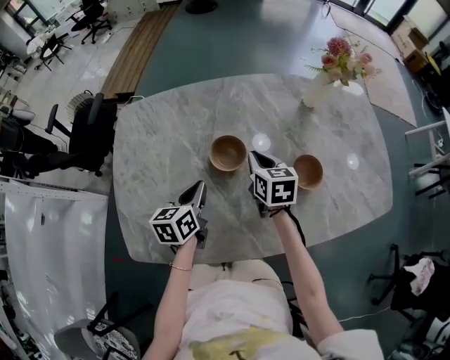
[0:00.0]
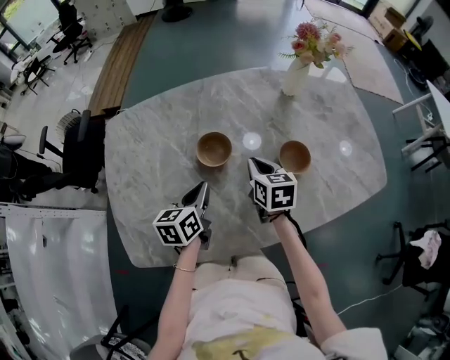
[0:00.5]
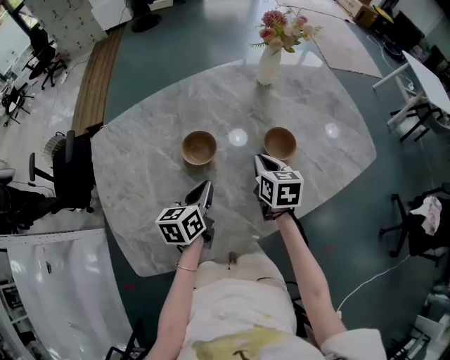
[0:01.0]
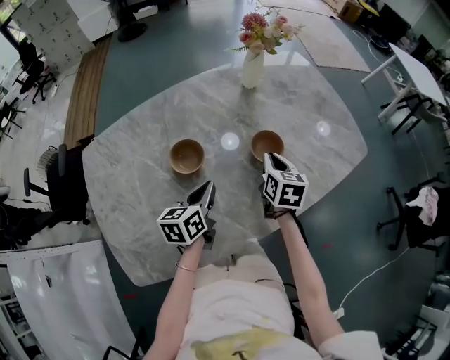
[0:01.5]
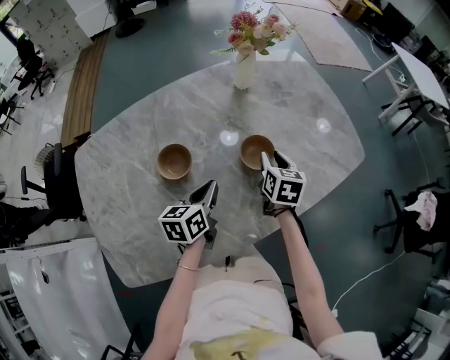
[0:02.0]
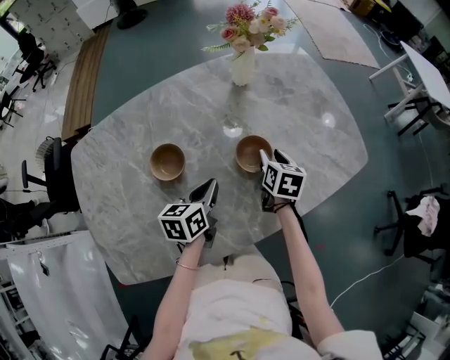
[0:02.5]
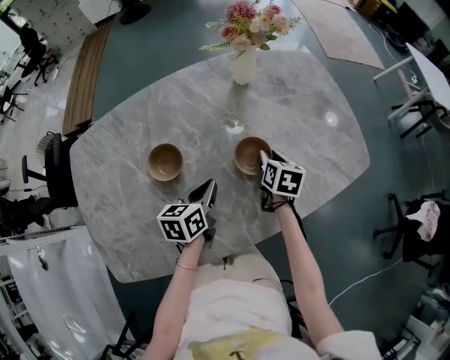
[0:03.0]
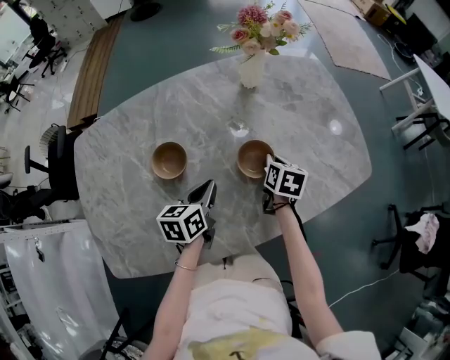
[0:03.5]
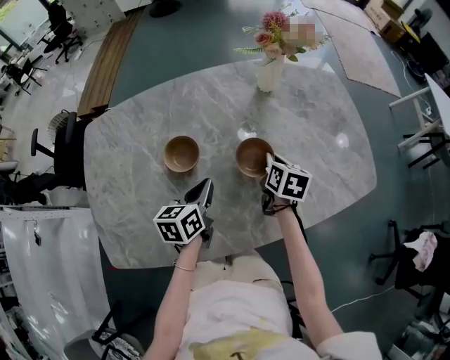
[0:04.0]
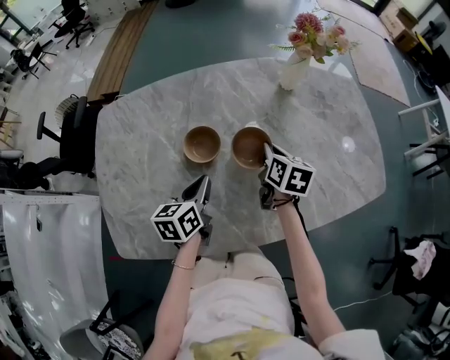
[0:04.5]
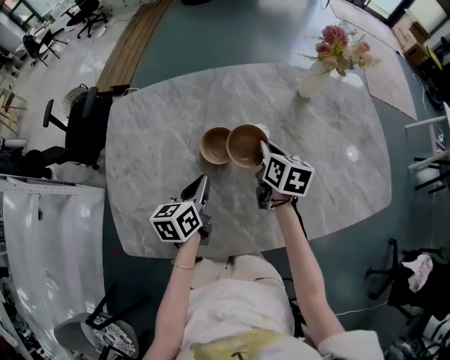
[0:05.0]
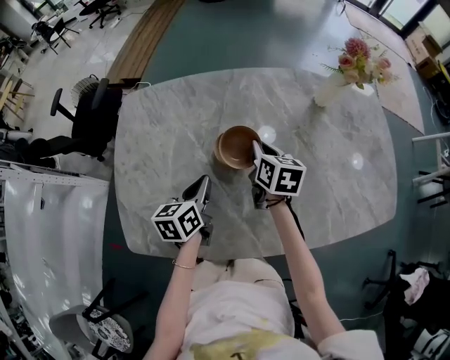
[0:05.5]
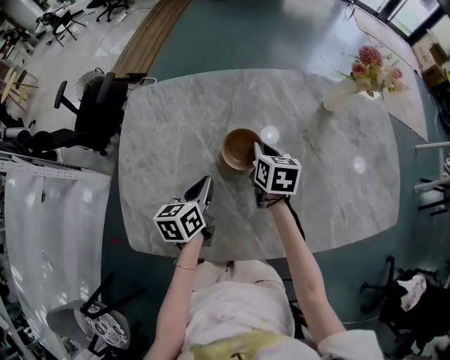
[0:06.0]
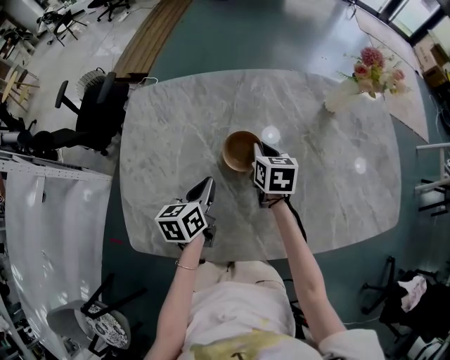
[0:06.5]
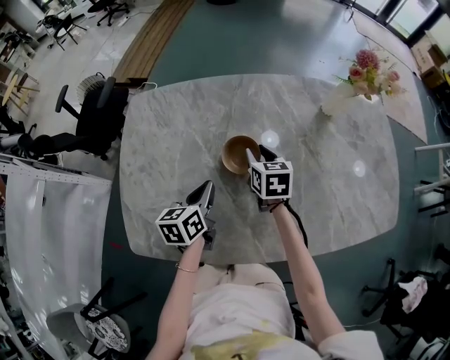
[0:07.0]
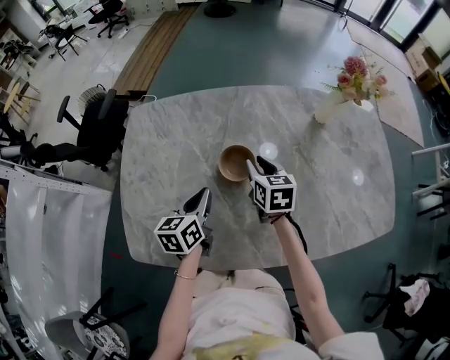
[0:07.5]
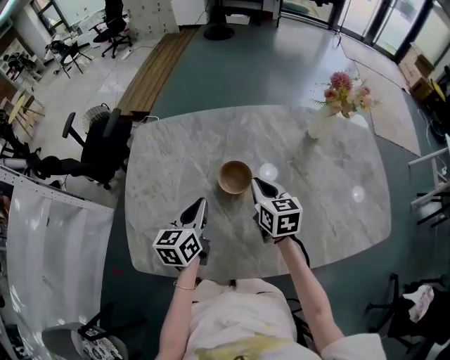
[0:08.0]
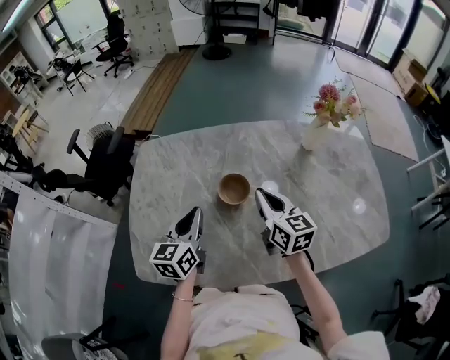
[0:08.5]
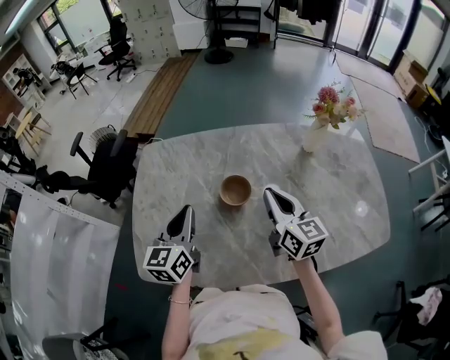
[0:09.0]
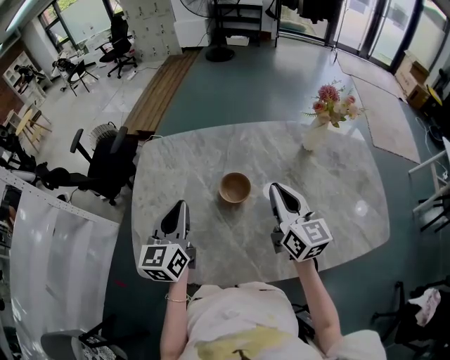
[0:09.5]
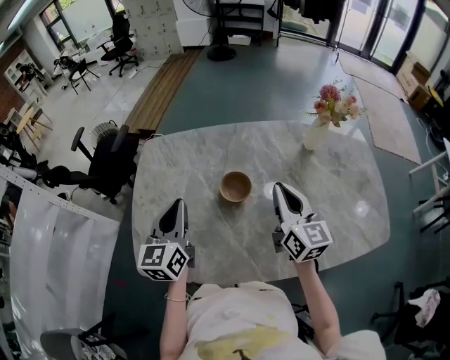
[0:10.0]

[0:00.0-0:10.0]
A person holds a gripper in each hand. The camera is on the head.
0:00.0 to 0:02.0: The right gripper moves approximately 20 cm, changes its angle by roughly 30 degrees, and opens its fingers. The left gripper shifts by roughly 15 cm, and changes its angle by roughly 20 degrees.
0:02.0 to 0:04.0: The right gripper shifts by about 5 cm, and closes up.
0:04.0 to 0:06.0: Both grippers move to the left, some 20 cm. The right gripper changes its angle by approximately 20 degrees.
0:06.0 to 0:08.0: The left gripper heads upward, covering roughly 5 cm. Meanwhile the right gripper moves upward and backward, approximately 10 cm, and opens, then closes once more.
0:08.0 to 0:10.0: The left gripper travels upward by about 10 cm, and rotates some 20 degrees. The right gripper travels upward and backward by some 15 cm, and turns by about 30 degrees.

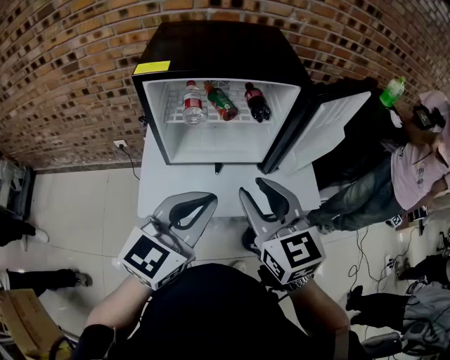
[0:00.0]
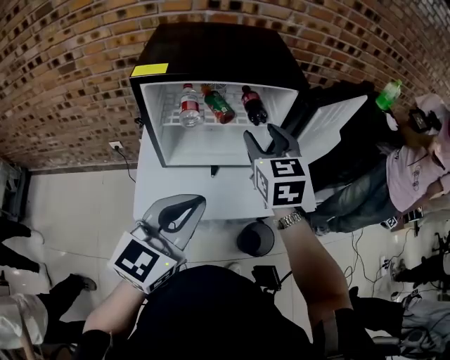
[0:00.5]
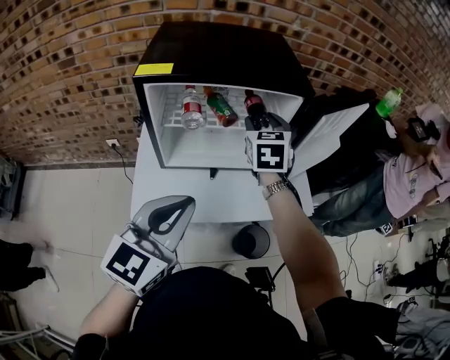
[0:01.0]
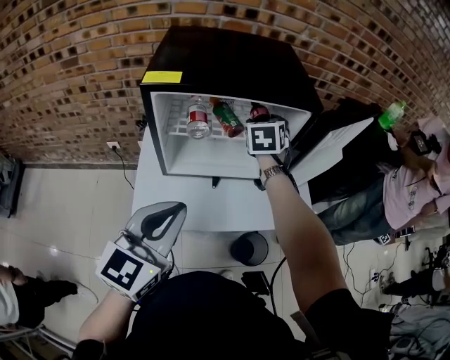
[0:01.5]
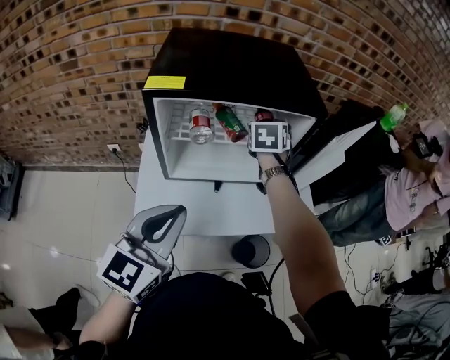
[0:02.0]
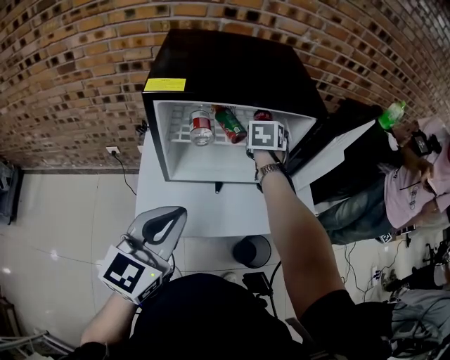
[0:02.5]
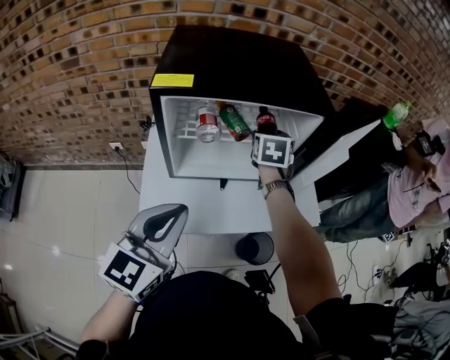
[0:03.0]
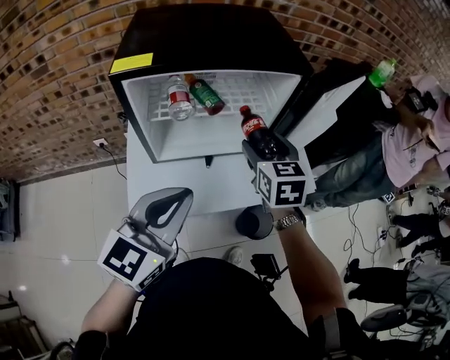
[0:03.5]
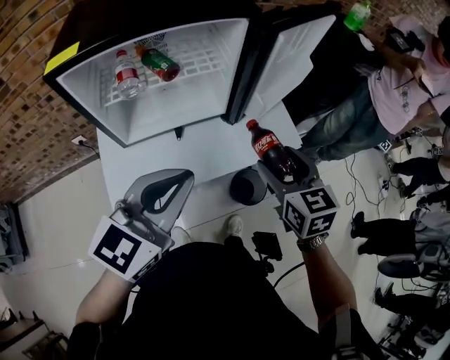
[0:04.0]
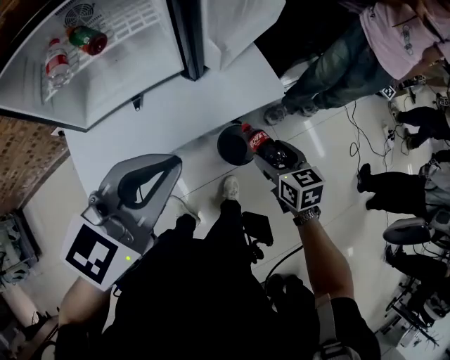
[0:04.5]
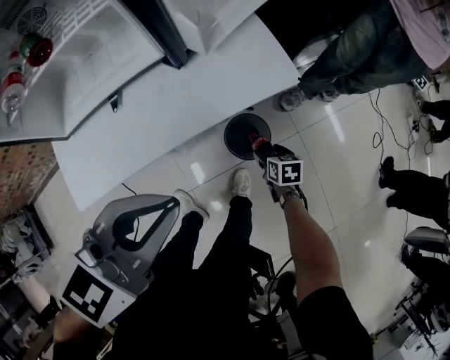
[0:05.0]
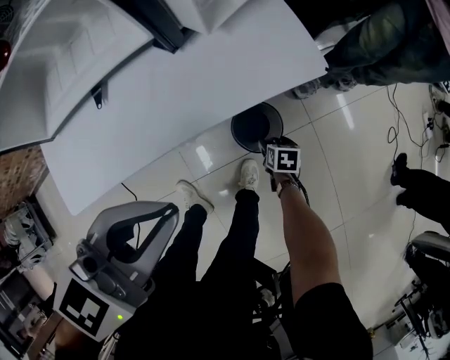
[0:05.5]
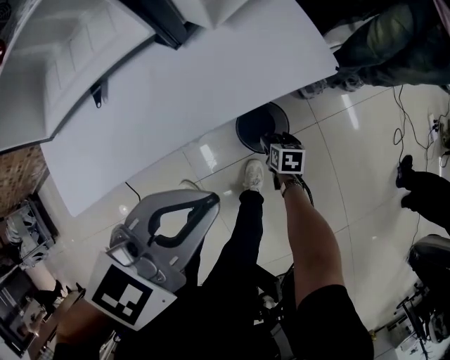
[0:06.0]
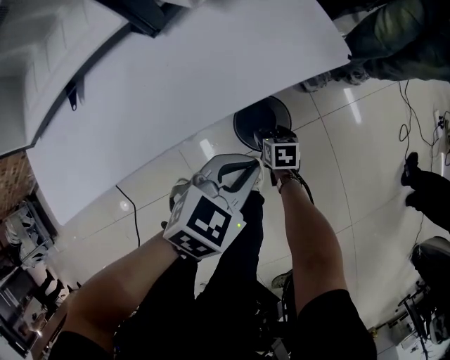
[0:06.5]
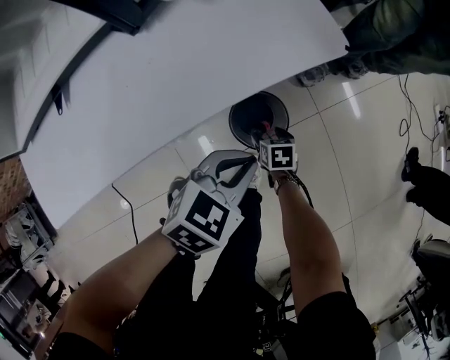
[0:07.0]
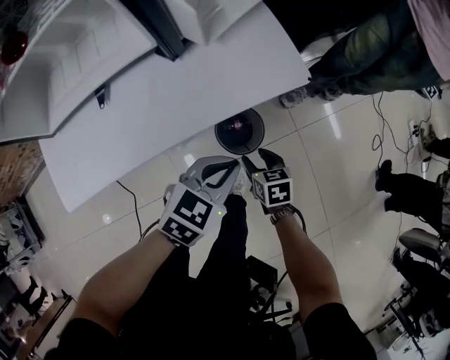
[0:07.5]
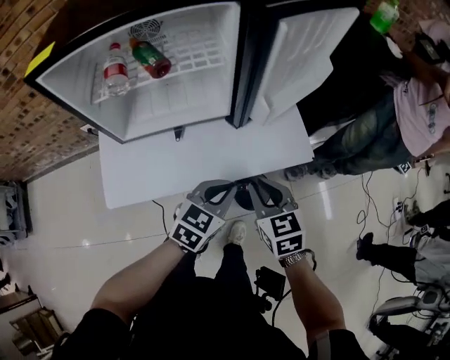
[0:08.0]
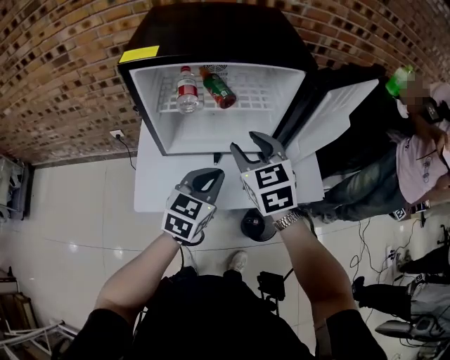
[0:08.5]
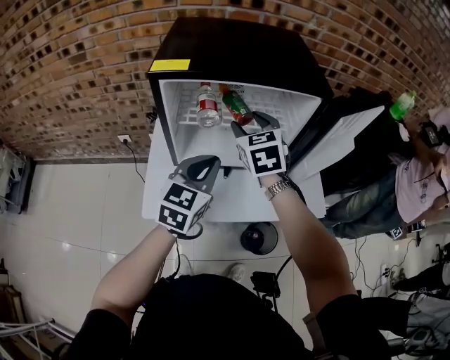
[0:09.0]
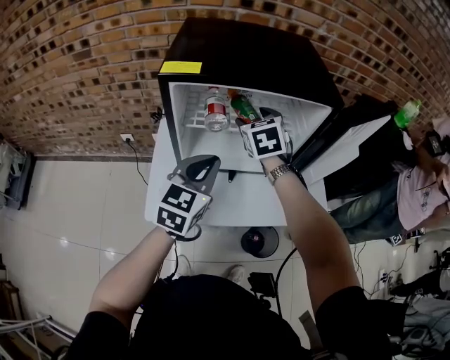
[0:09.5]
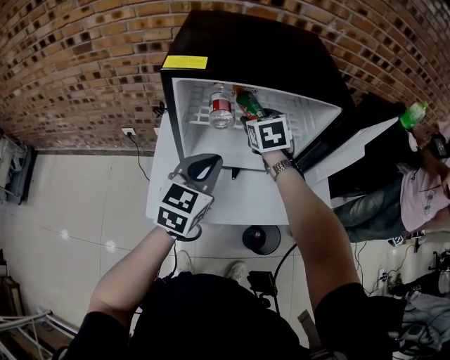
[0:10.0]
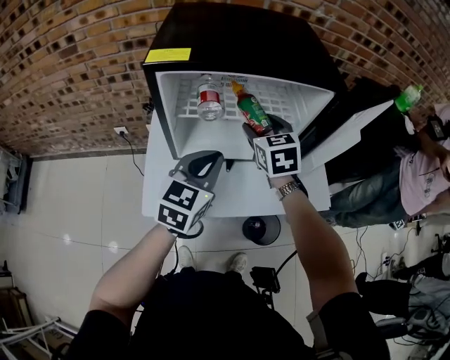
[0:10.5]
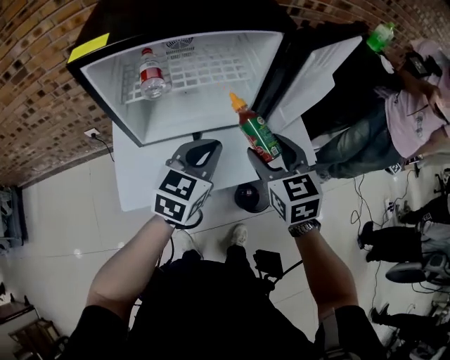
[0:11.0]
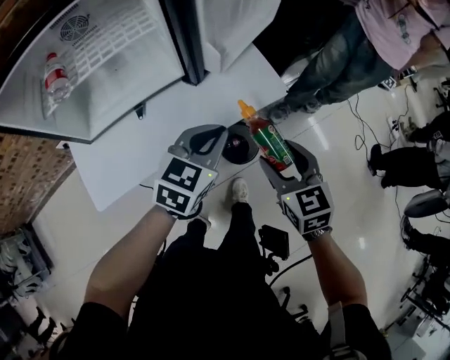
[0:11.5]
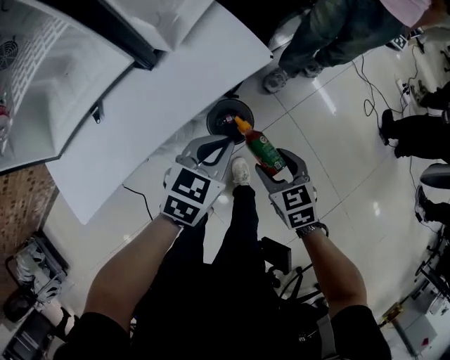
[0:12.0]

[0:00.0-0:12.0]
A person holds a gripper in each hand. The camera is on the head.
0:00.0 to 0:02.0: The left gripper is displaced to the left by approximately 10 cm, while the right gripper travels forward by roughly 30 cm, changes its angle by roughly 40 degrees, and opens its fingers.
0:02.0 to 0:04.0: The left gripper shifts roughly 10 cm to the right, and swivels some 20 degrees, while the right gripper shifts approximately 30 cm backward and to the right, and turns by some 20 degrees.
0:04.0 to 0:06.0: The right gripper shifts about 60 cm downward, and points its fingers some 30 degrees further downward. The left gripper shifts roughly 30 cm downward and to the right, and turns by some 30 degrees.
0:06.0 to 0:08.0: The right gripper goes some 40 cm upward, changes its angle by about 50 degrees, and closes. The left gripper heads to the left, covering about 5 cm, and travels downward and back again, some 20 cm each way.
0:08.0 to 0:10.0: The right gripper heads forward, to the left and upward, covering some 40 cm, and opens up. Meanwhile the left gripper is displaced to the left and upward by roughly 30 cm, and swivels some 30 degrees.
0:10.0 to 0:12.0: The right gripper moves about 60 cm, and changes its angle by about 30 degrees. Meanwhile the left gripper shifts by some 50 cm, and changes its angle by roughly 50 degrees.

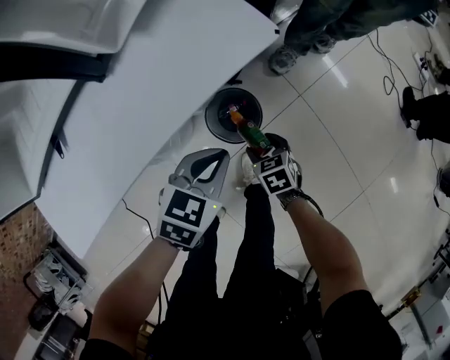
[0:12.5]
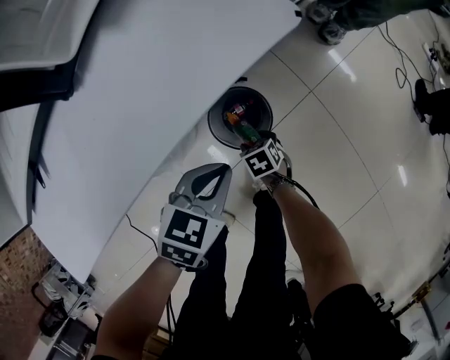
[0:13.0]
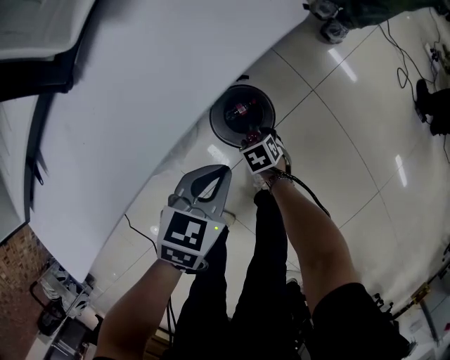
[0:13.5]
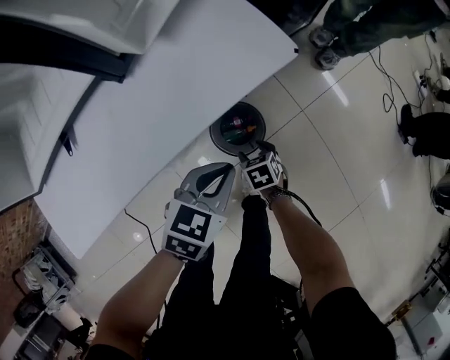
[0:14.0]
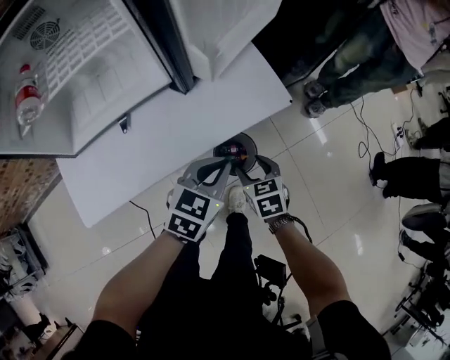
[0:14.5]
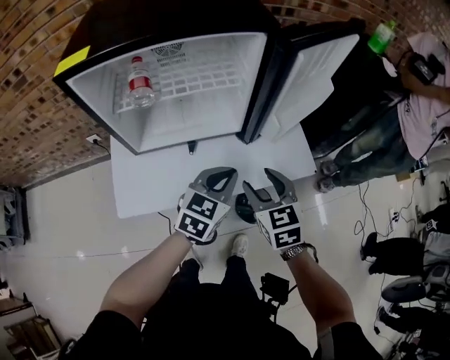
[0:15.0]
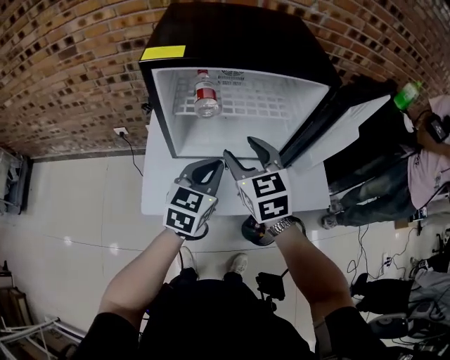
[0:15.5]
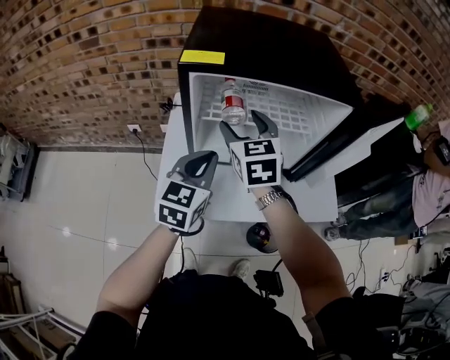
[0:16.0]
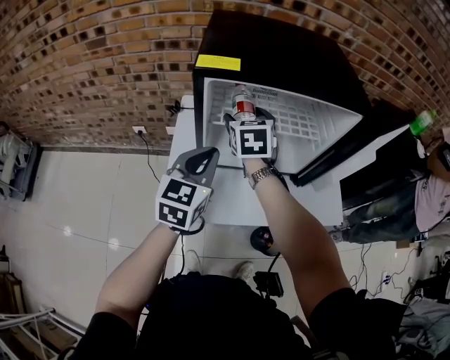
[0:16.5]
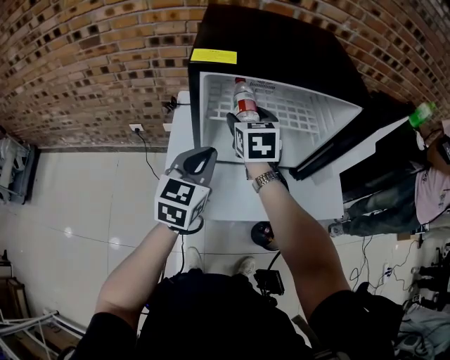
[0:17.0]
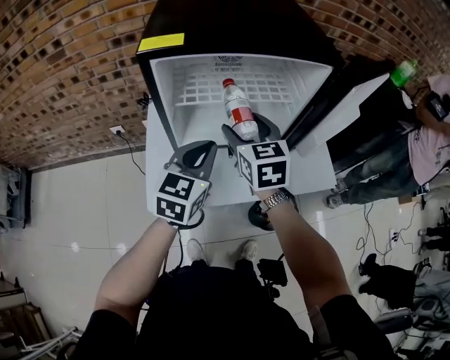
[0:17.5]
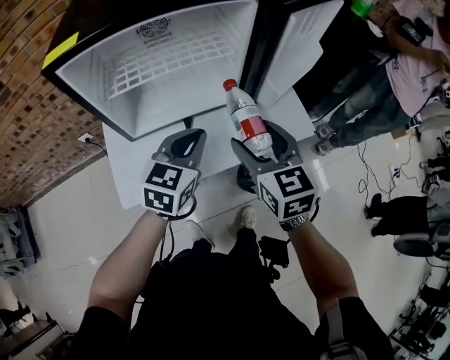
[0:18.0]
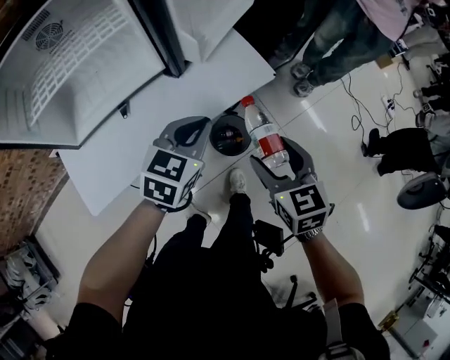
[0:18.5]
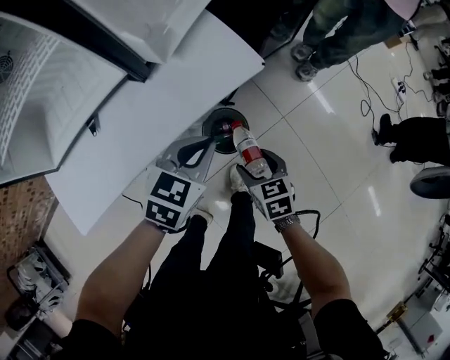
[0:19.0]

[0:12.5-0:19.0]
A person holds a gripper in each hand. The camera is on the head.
0:12.5 to 0:14.5: Both grippers travel together upward, roughly 20 cm.
0:14.5 to 0:17.0: The left gripper moves roughly 50 cm, and turns by some 50 degrees, while the right gripper changes place by about 60 cm, and rotates about 30 degrees.
0:17.0 to 0:19.0: Both grippers are carried approximately 50 cm. The left gripper swivels some 50 degrees, while the right gripper turns by approximately 40 degrees.
